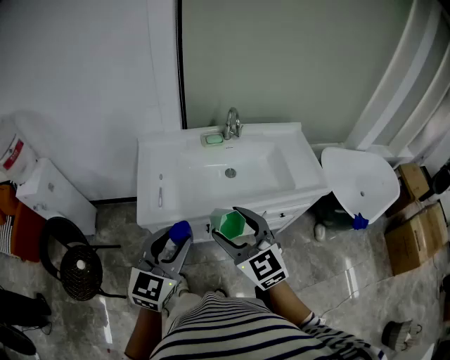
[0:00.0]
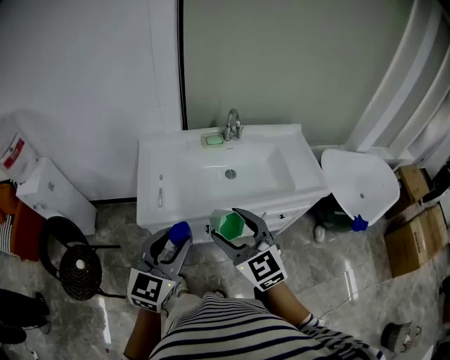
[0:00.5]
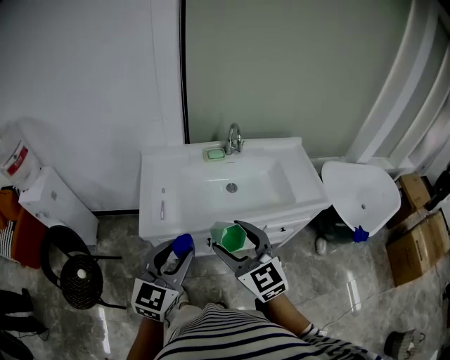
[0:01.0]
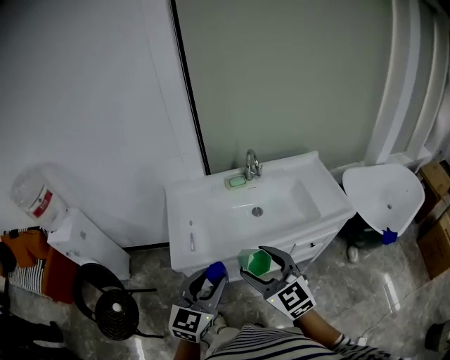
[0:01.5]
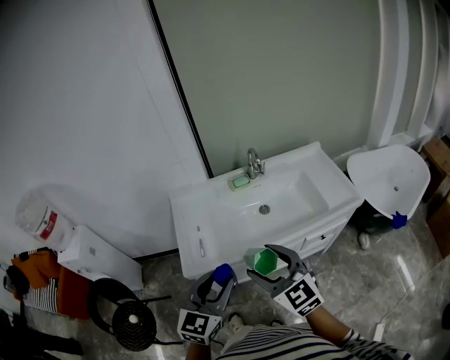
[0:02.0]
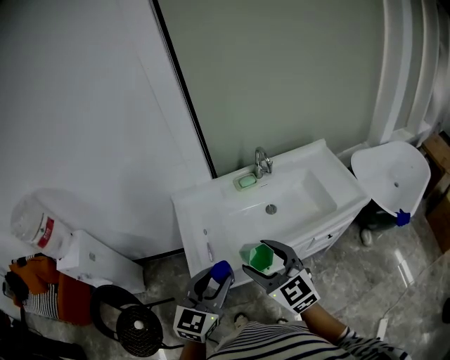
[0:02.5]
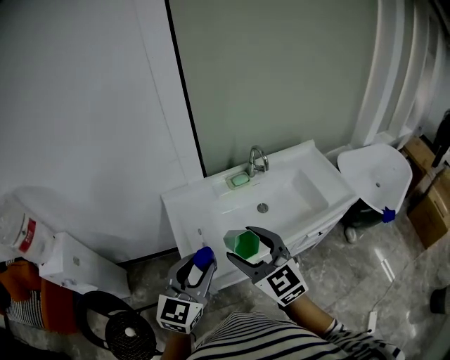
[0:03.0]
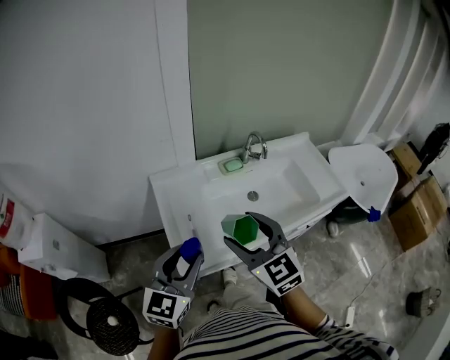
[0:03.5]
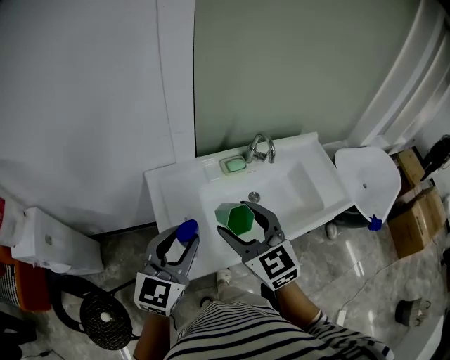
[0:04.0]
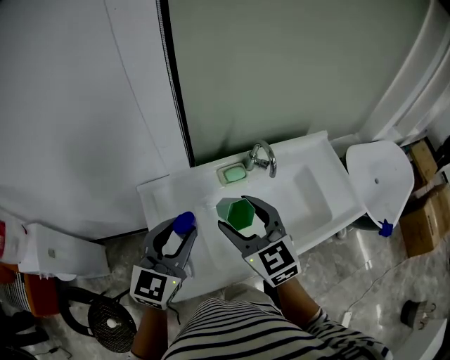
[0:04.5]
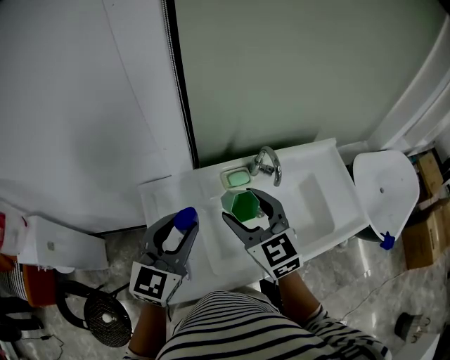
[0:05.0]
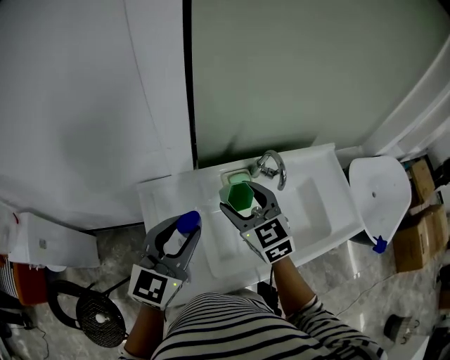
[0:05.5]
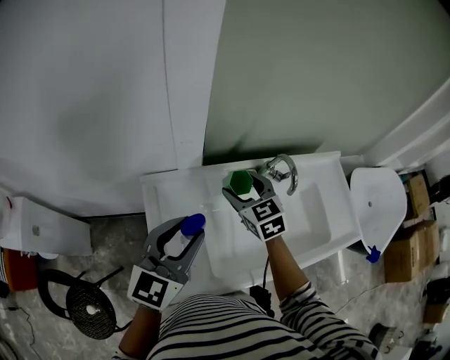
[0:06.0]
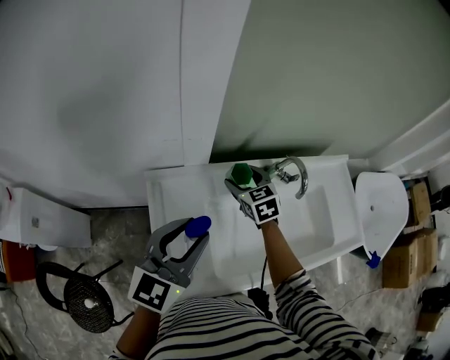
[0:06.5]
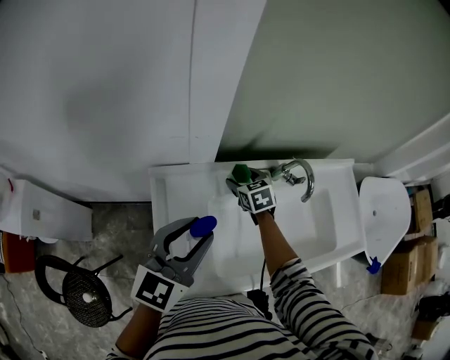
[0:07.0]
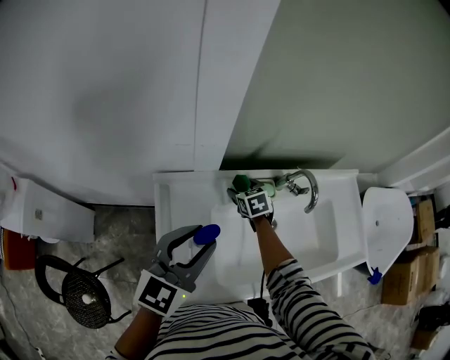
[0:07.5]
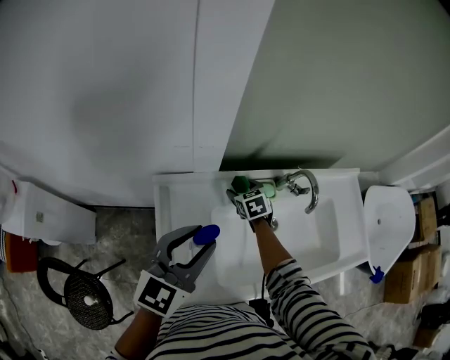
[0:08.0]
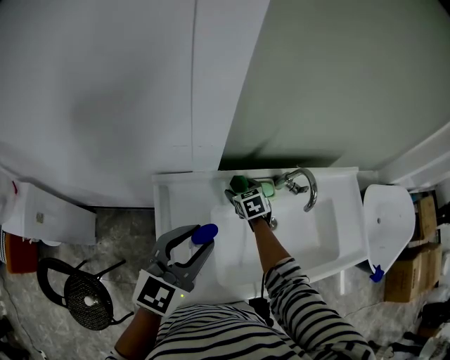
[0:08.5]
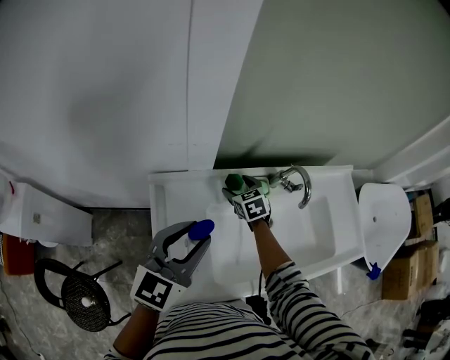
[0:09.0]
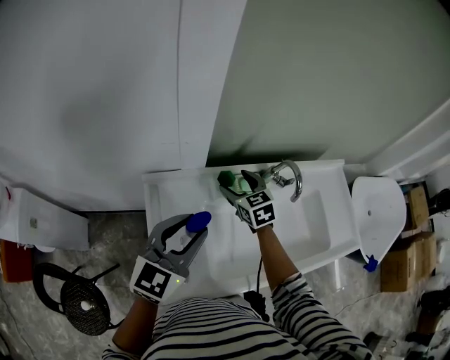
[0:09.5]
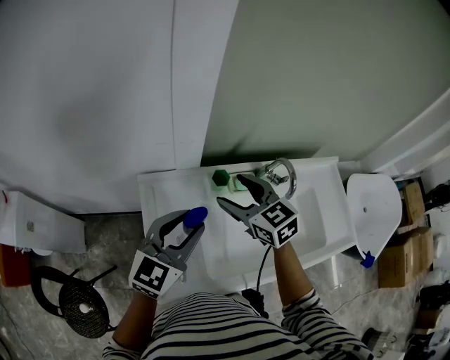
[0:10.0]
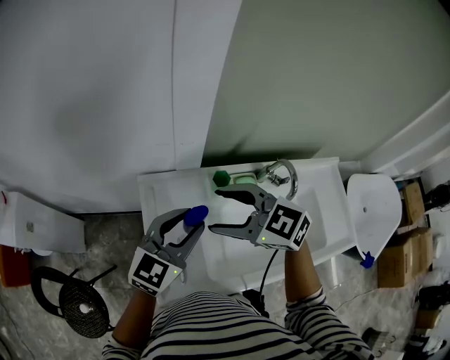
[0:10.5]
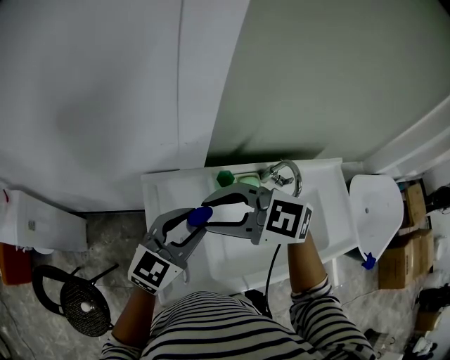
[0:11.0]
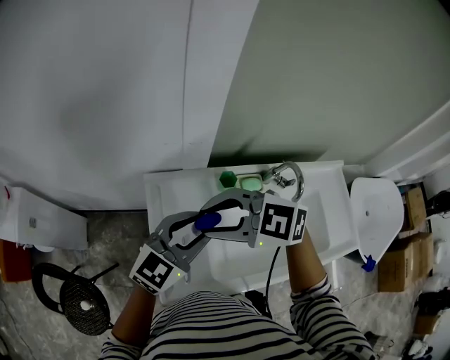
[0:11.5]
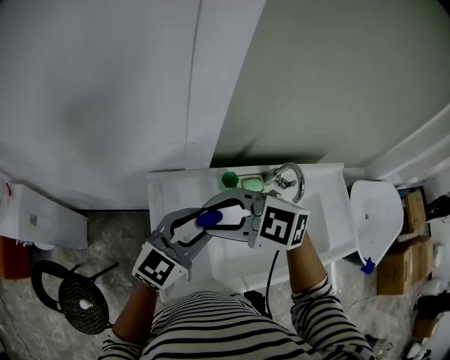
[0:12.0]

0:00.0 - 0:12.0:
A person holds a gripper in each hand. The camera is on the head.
0:00.0 - 0:02.0: The grippers move only a little.
0:02.0 - 0:04.0: Both grippers travel together forward and to the left, approximately 25 cm.
0:04.0 - 0:06.0: The left gripper goes roughly 15 cm forward; the right gripper heads forward and downward, covering approximately 30 cm.
0:06.0 - 0:08.0: The right gripper moves downward and forward, approximately 20 cm.
0:08.0 - 0:10.0: The right gripper is displaced upward and backward by approximately 25 cm, and swivels approximately 30 degrees.
0:10.0 - 0:12.0: The right gripper ends up some 15 cm from where it was, changes its angle by some 50 degrees, and closes.

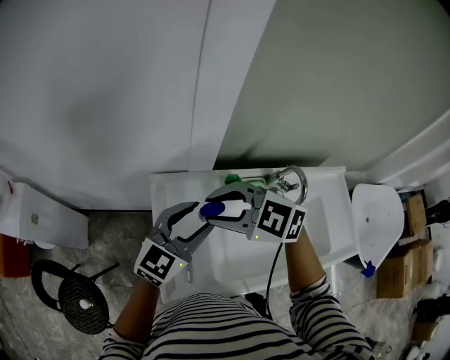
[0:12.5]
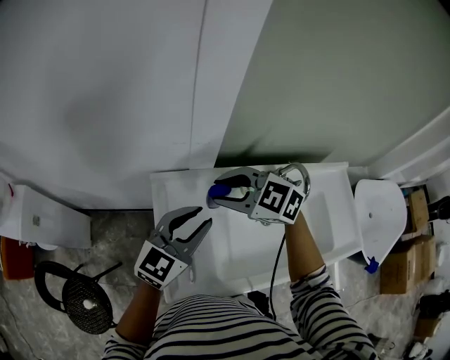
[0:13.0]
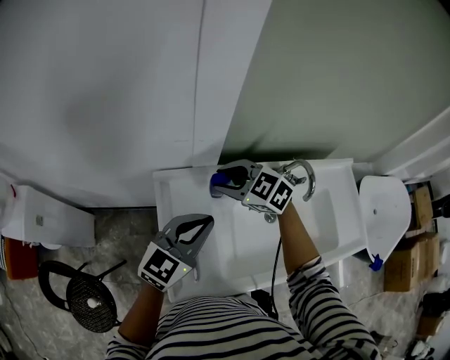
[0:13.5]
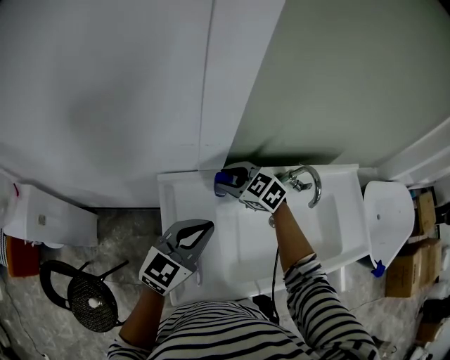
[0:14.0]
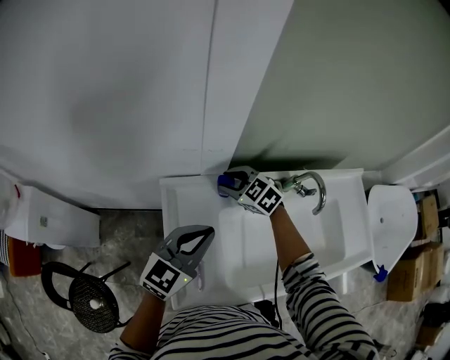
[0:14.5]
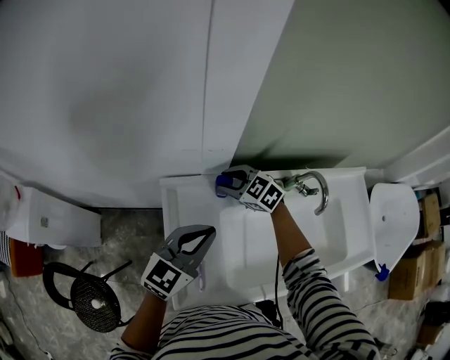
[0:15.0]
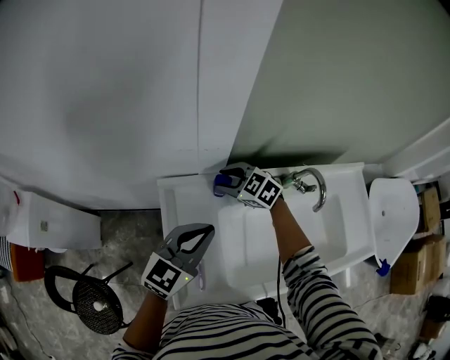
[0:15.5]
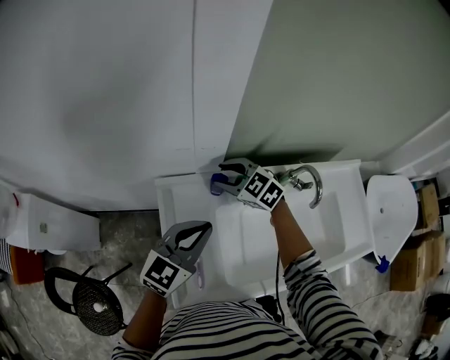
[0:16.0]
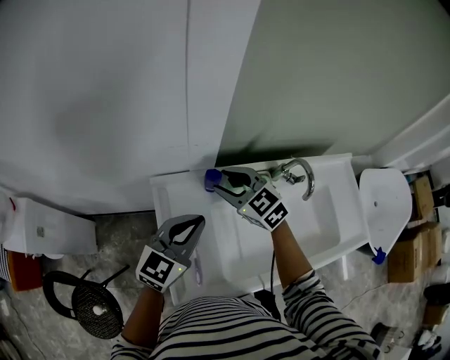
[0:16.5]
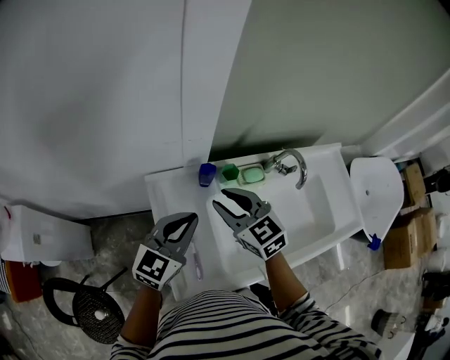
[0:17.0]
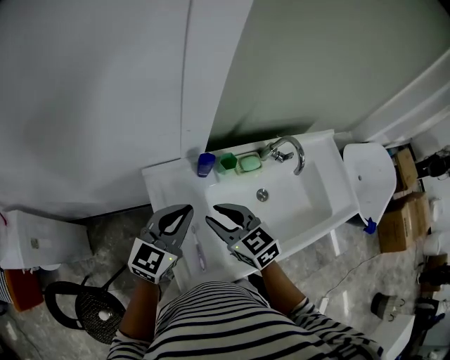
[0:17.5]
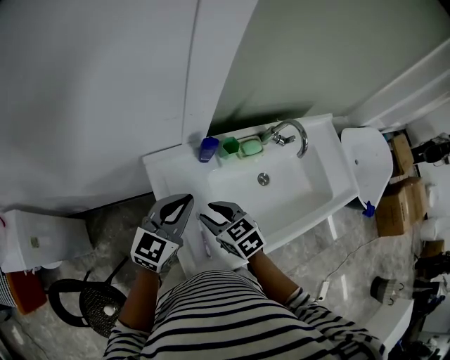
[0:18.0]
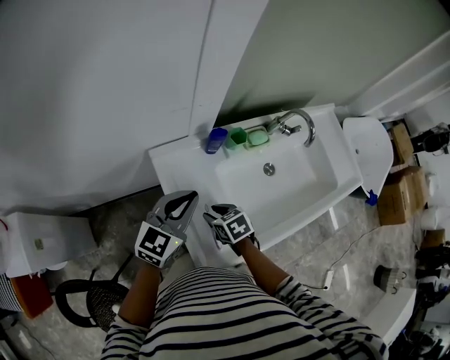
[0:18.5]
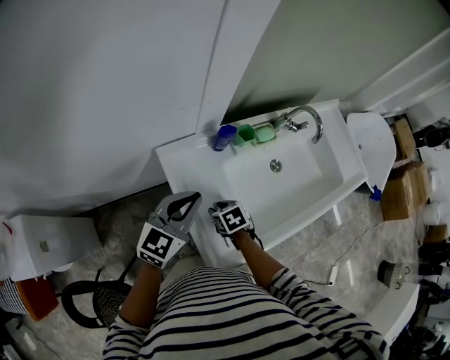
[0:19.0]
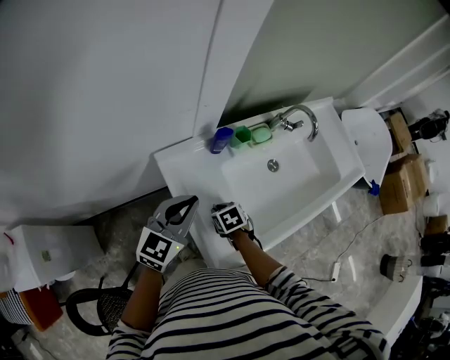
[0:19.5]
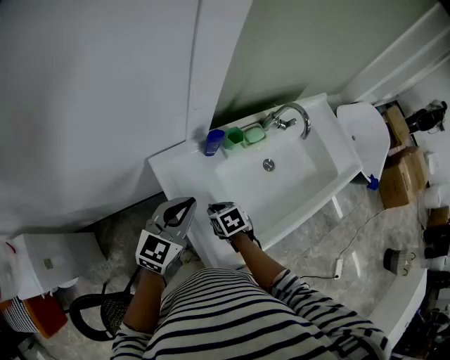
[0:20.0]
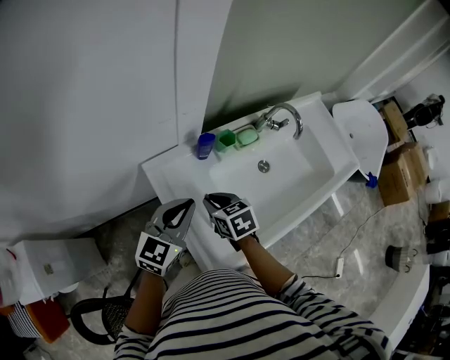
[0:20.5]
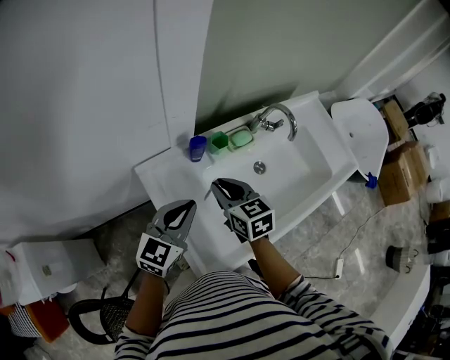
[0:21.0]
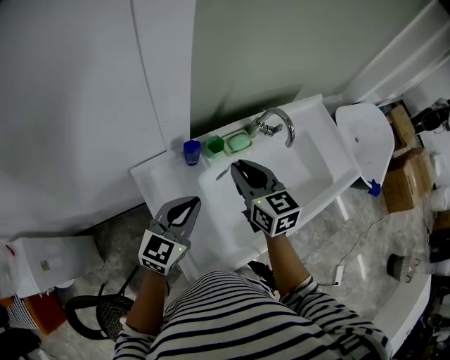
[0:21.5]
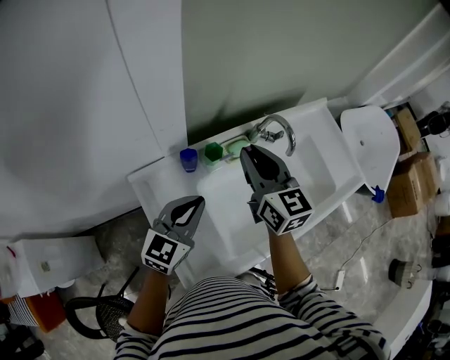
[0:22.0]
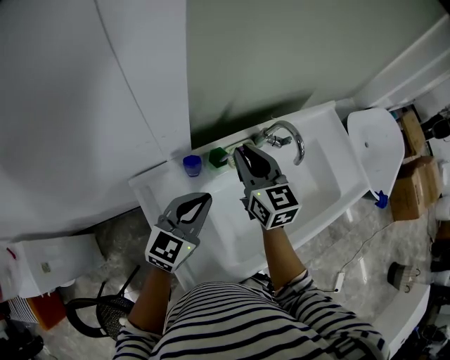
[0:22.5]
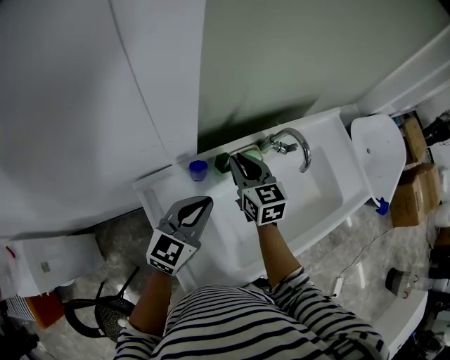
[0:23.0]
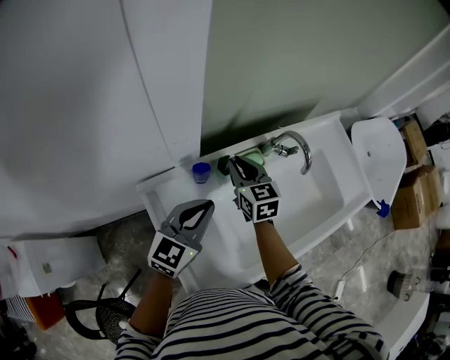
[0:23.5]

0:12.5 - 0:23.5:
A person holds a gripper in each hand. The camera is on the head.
0:12.5 - 0:14.5: The right gripper travels downward and forward by about 25 cm, and swivels about 20 degrees; the left gripper closes up.
0:14.5 - 0:16.0: The grippers move only a little.
0:16.0 - 0:18.0: The right gripper is displaced backward by some 20 cm, and changes its angle by roughly 40 degrees. The left gripper goes roughly 5 cm to the left.
0:18.0 - 0:20.0: The right gripper is displaced downward by roughly 10 cm, and swivels about 30 degrees.
0:20.0 - 0:21.5: The right gripper travels upward, forward and to the right by roughly 30 cm, and angles its fingers upward, by approximately 40 degrees, while the left gripper shifts roughly 10 cm to the right.
0:21.5 - 0:23.5: The right gripper travels forward and downward by some 15 cm. The left gripper goes approximately 5 cm forward.

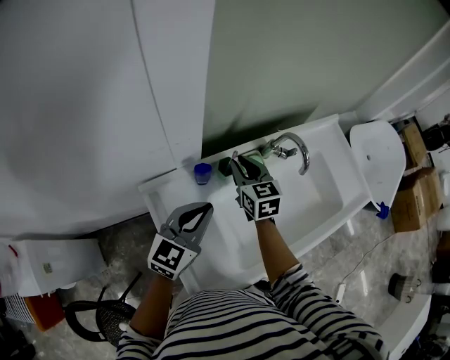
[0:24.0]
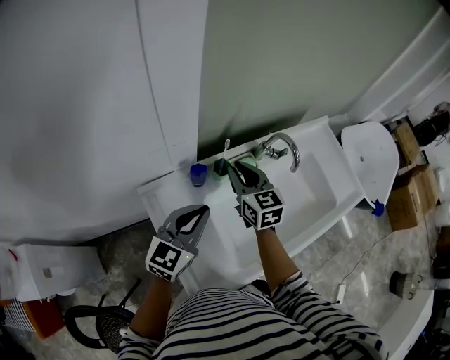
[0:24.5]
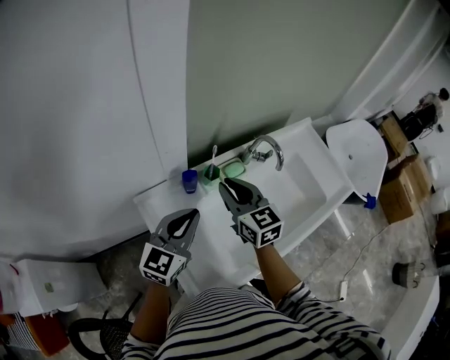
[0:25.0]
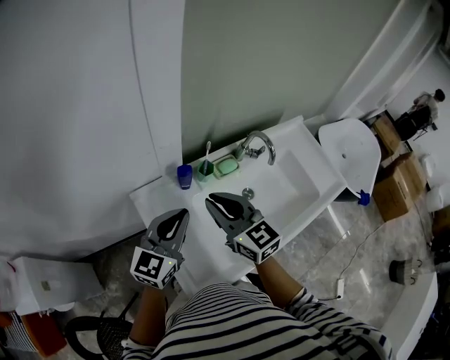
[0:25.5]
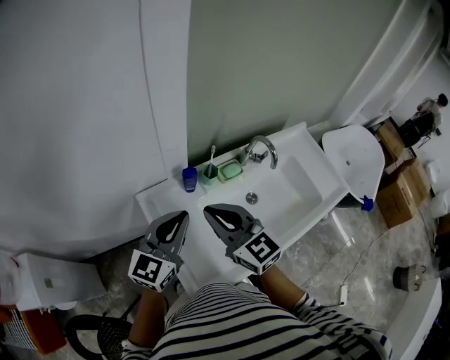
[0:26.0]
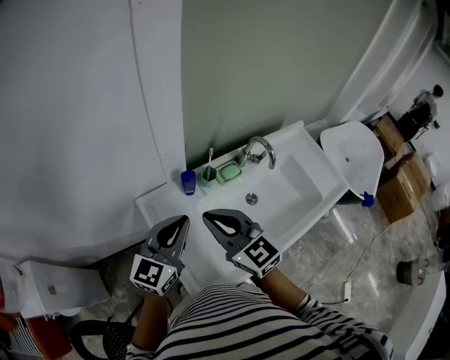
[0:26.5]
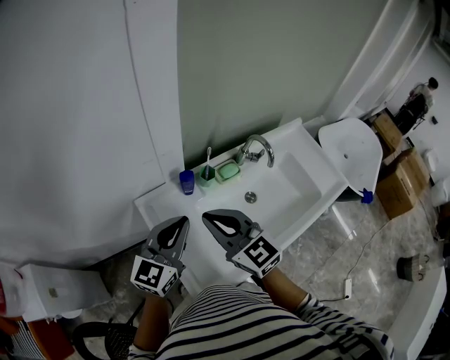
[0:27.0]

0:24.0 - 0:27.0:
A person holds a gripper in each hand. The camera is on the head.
0:24.0 - 0:25.5: The left gripper moves backward and upward, roughly 10 cm. Meanwhile the right gripper travels backward and upward by some 20 cm, and rotates about 20 degrees.
0:25.5 - 0:27.0: The right gripper changes place by about 5 cm.

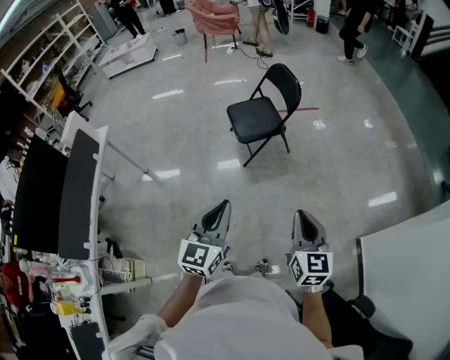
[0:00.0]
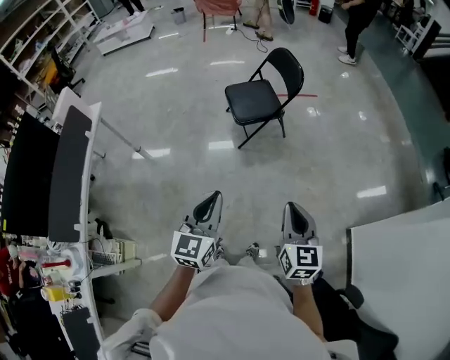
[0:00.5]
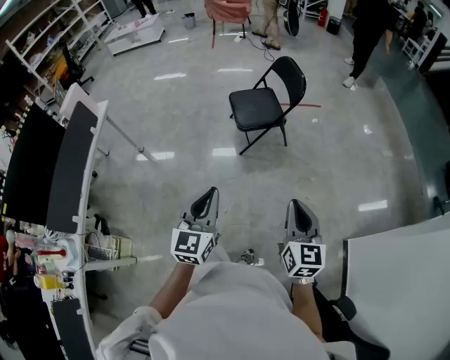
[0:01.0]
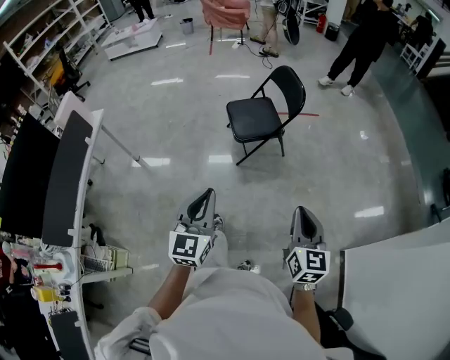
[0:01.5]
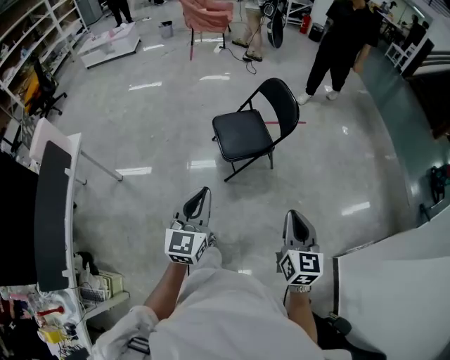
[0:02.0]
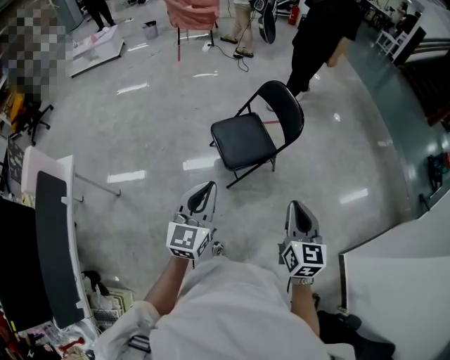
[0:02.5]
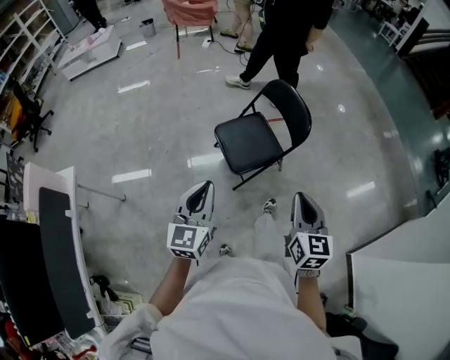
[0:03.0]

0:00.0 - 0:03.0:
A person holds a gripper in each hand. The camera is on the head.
0:00.0 - 0:01.5: The right gripper moves forward, roughly 5 cm. The left gripper ends up about 5 cm from where it was.
0:01.5 - 0:03.0: Both grippers move forward and to the left, approximately 40 cm.
